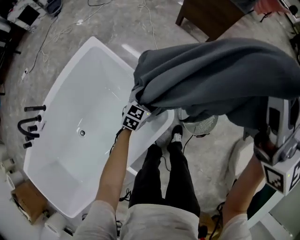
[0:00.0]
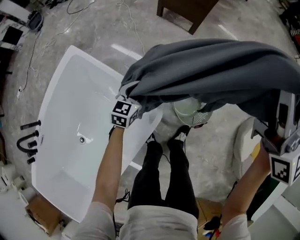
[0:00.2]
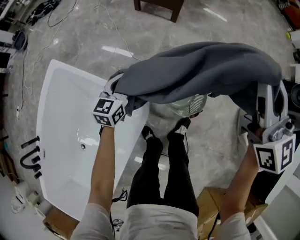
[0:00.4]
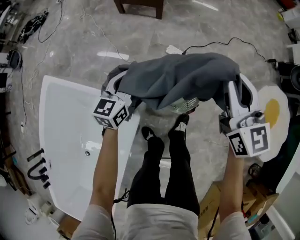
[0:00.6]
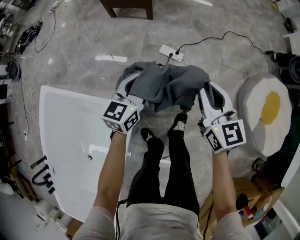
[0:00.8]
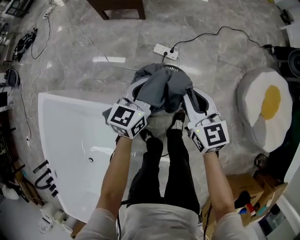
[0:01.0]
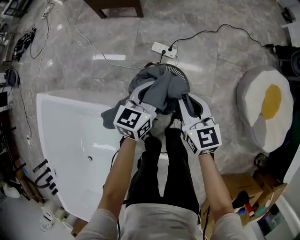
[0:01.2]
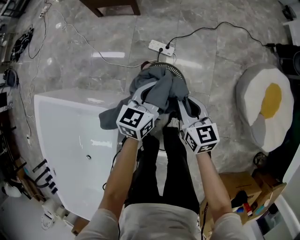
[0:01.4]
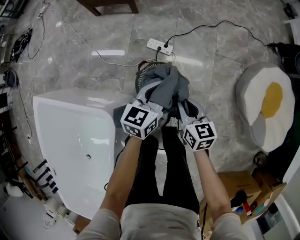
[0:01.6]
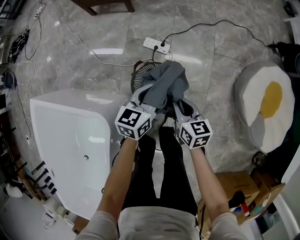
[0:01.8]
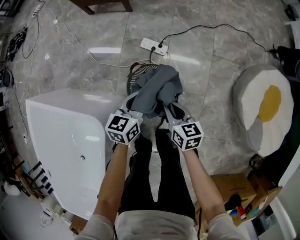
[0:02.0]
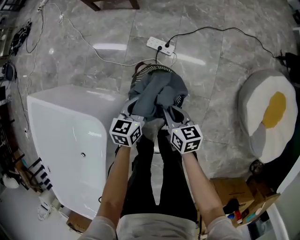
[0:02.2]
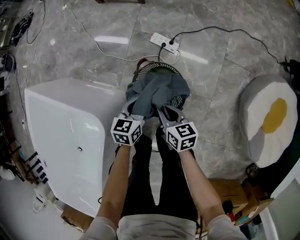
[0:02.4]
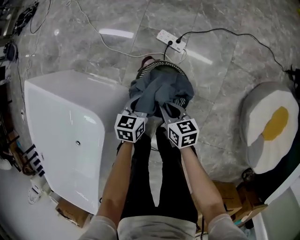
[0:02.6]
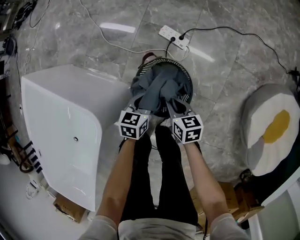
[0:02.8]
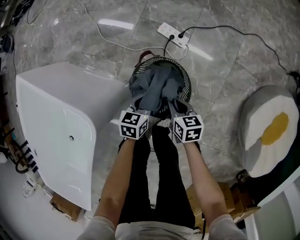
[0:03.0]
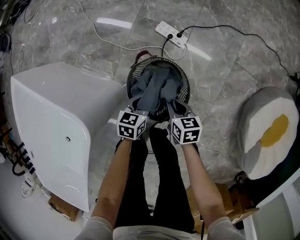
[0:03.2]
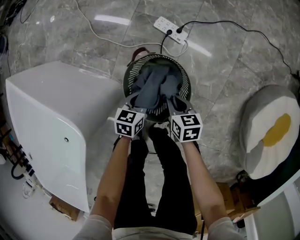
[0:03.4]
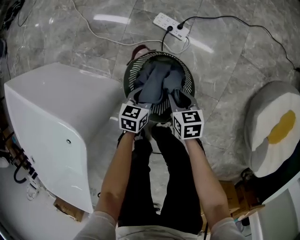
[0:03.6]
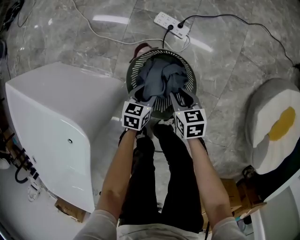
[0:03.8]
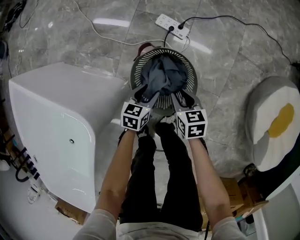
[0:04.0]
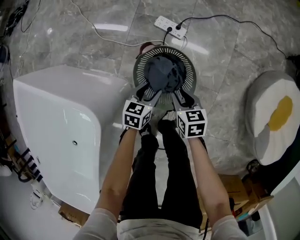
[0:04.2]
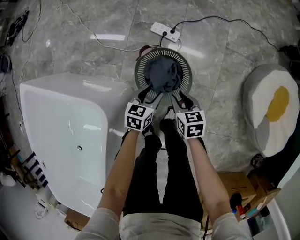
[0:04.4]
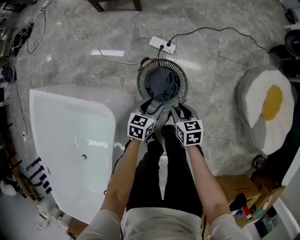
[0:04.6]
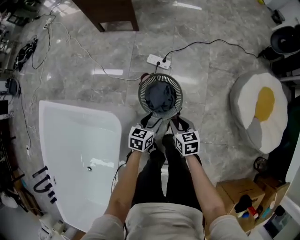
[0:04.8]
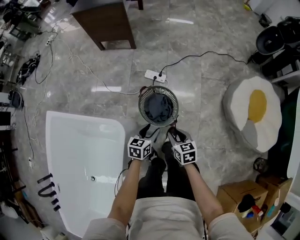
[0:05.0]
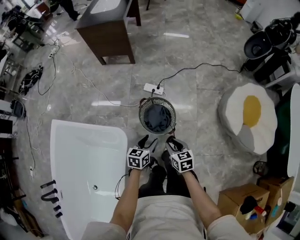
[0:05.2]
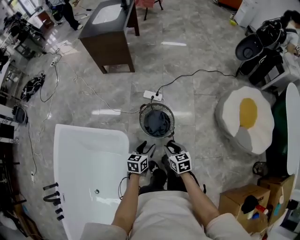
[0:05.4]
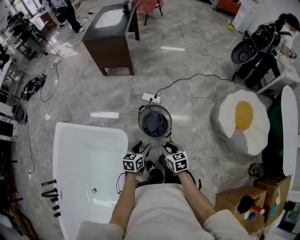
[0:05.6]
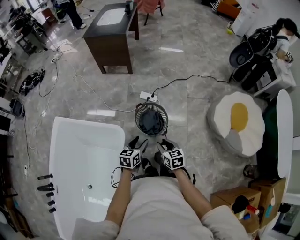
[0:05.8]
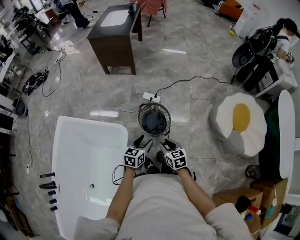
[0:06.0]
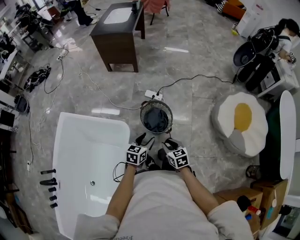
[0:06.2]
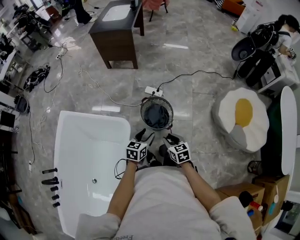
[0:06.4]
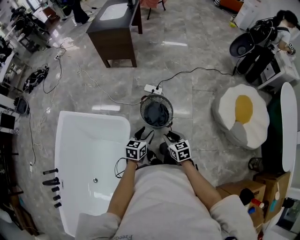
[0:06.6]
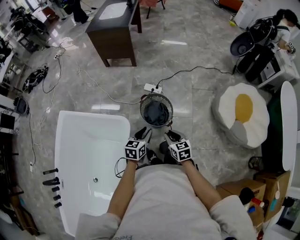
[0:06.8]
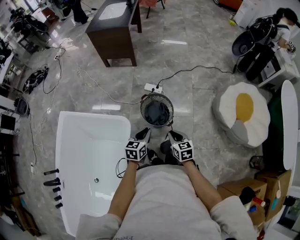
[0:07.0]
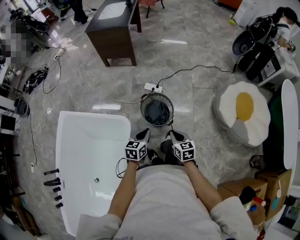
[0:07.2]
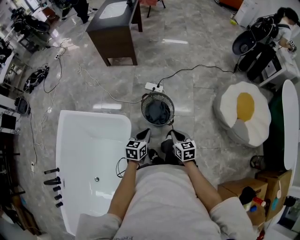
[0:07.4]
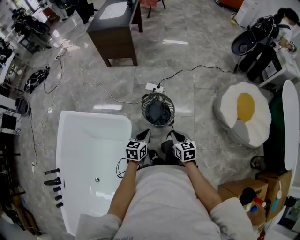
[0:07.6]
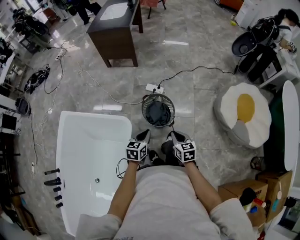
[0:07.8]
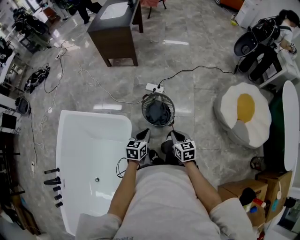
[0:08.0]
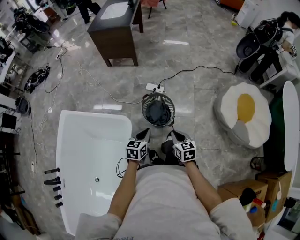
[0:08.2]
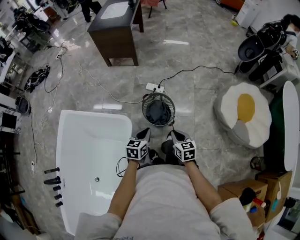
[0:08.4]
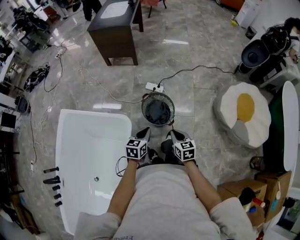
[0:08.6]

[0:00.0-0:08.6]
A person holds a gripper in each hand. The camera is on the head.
0:00.0 to 0:01.4: The right gripper heads downward, covering approximately 40 cm, and points its fingers about 40 degrees further downward; the left gripper changes place by approximately 40 cm, changes its angle by about 20 degrees, and closes.
0:01.4 to 0:02.8: Both grippers move downward, roughly 25 cm. The left gripper turns by about 30 degrees. The right gripper swivels some 30 degrees.
0:02.8 to 0:04.4: The two grippers go about 5 cm backward. The left gripper travels downward and back again, approximately 15 cm each way, while the right gripper moves some 10 cm downward and comes back.
0:04.4 to 0:05.8: Both grippers travel together upward and backward, approximately 40 cm.
0:05.8 to 0:07.2: The grippers make only small movements.
0:07.2 to 0:08.6: The two grippers keep their place.

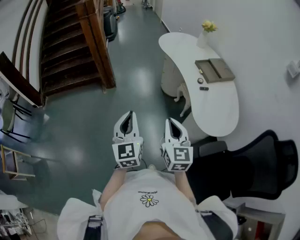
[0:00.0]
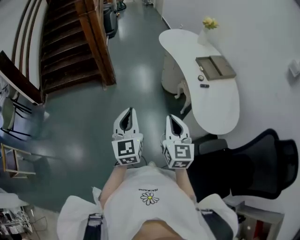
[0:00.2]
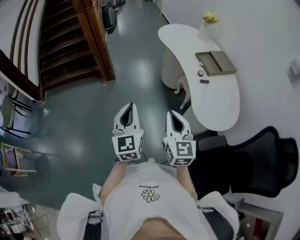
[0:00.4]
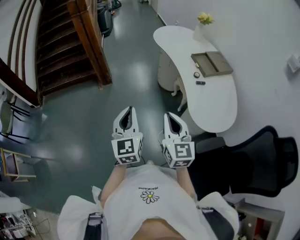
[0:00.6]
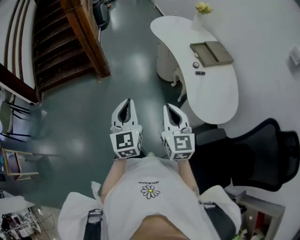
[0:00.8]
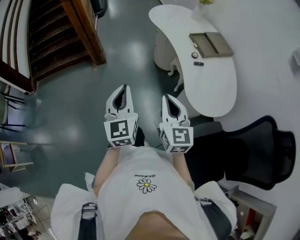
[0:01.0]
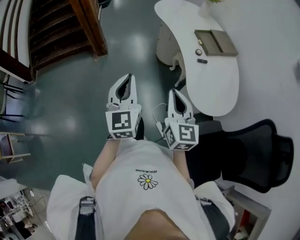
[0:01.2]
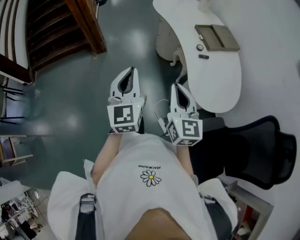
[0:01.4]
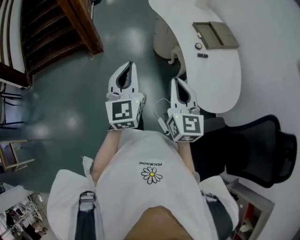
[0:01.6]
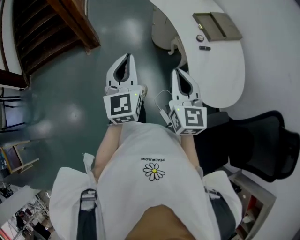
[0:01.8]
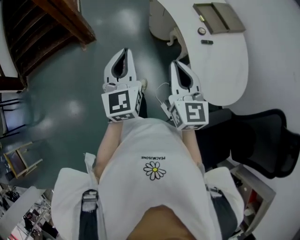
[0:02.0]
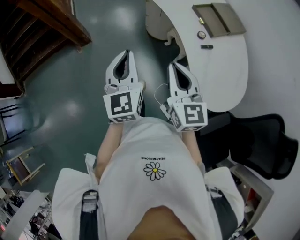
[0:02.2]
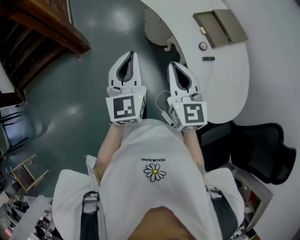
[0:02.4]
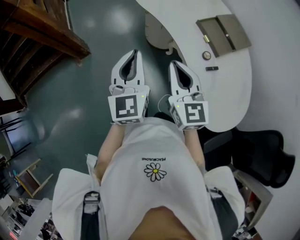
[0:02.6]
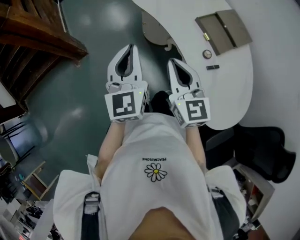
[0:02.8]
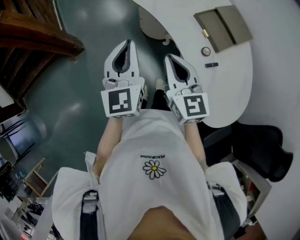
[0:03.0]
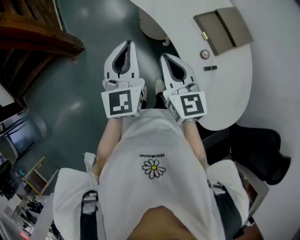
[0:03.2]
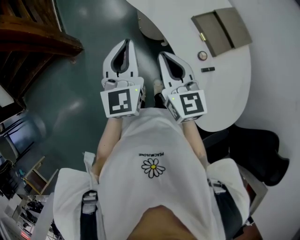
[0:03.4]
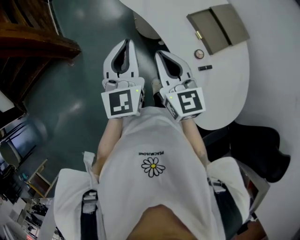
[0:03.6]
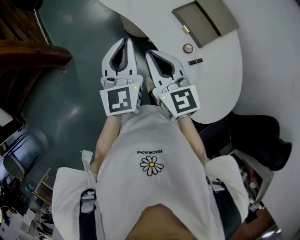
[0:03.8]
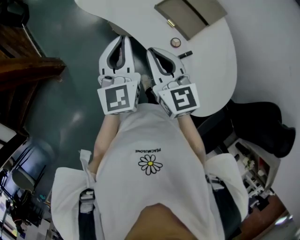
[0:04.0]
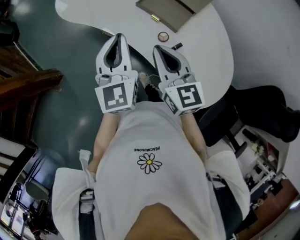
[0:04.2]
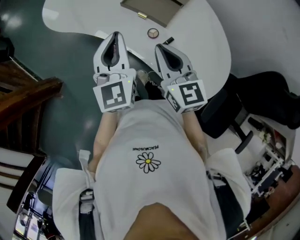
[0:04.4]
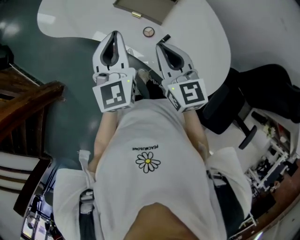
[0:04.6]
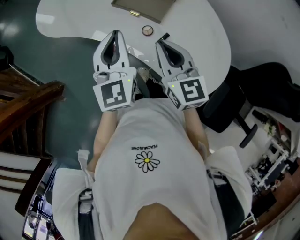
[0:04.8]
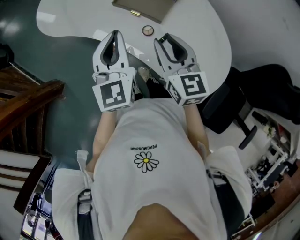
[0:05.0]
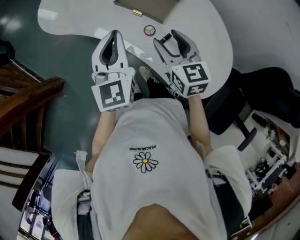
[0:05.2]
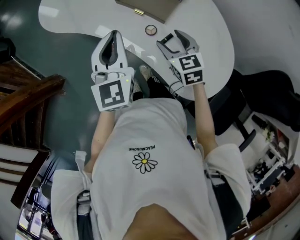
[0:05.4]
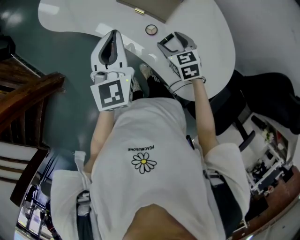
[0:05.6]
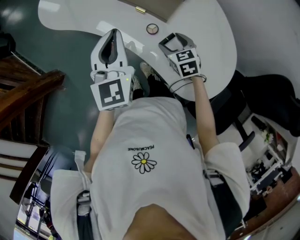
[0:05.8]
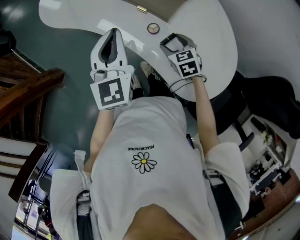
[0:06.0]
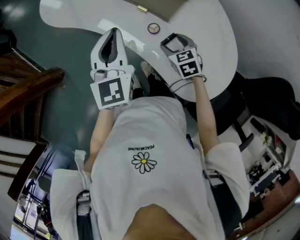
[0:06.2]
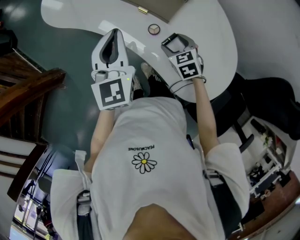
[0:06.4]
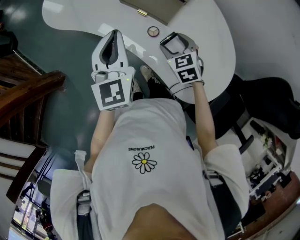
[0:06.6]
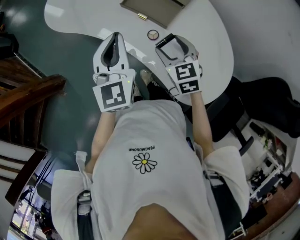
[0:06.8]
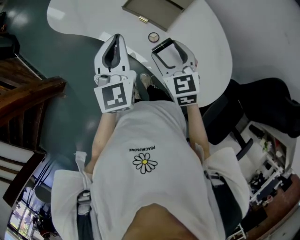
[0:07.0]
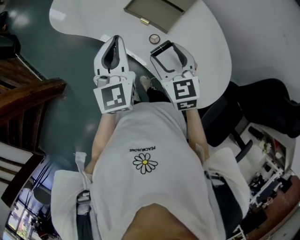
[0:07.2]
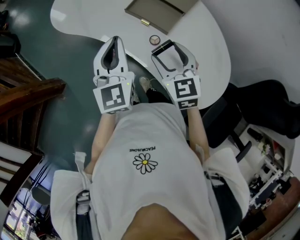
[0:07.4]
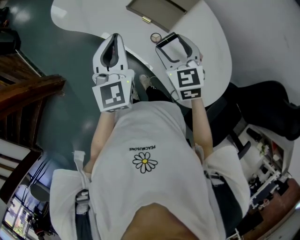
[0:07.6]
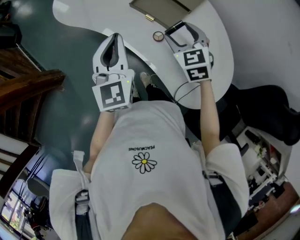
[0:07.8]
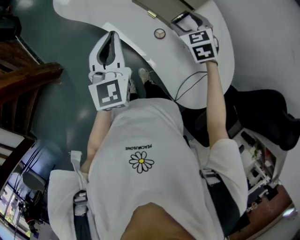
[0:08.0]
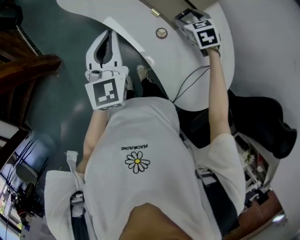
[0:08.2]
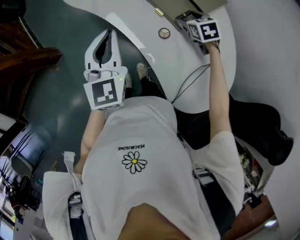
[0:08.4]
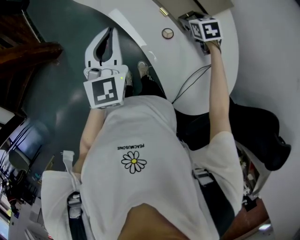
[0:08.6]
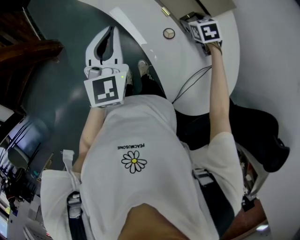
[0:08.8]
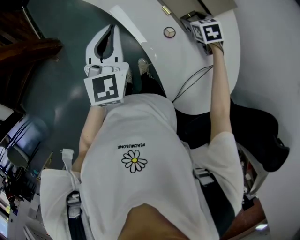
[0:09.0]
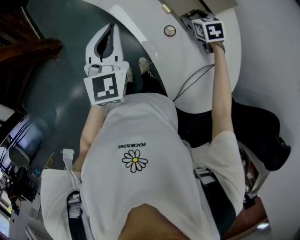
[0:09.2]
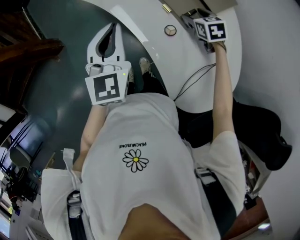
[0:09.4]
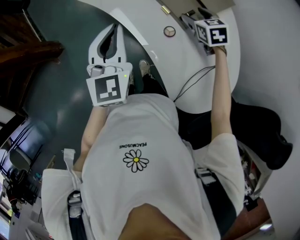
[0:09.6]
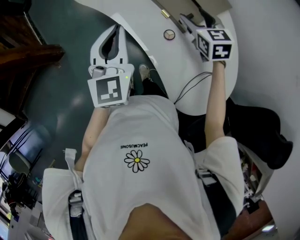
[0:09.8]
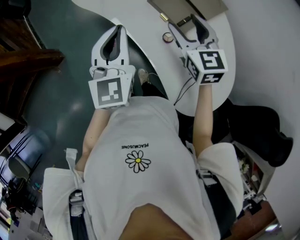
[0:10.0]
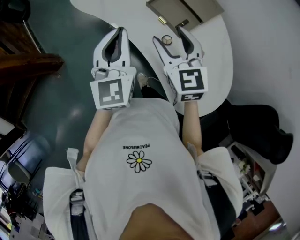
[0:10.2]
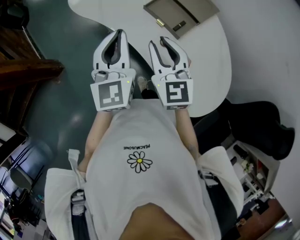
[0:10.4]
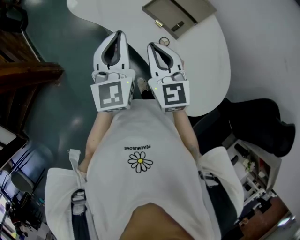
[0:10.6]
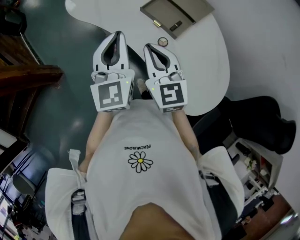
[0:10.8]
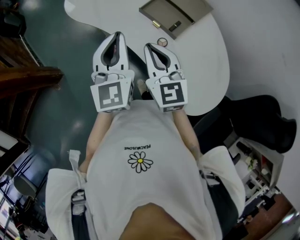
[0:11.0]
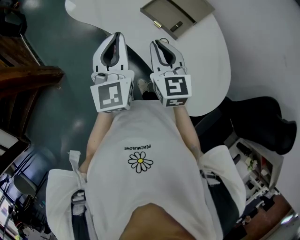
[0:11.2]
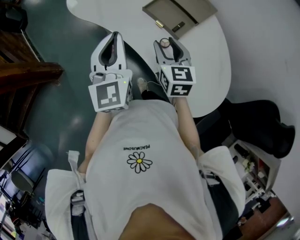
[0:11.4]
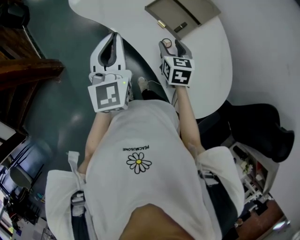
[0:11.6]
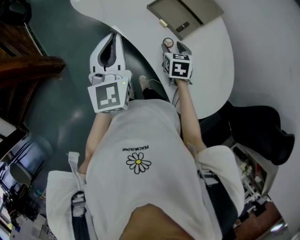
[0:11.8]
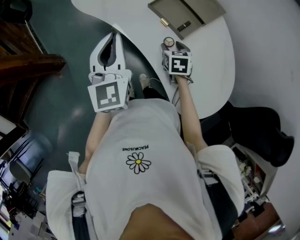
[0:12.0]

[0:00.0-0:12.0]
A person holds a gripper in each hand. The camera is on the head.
0:00.0 to 0:01.6: Both grippers travel together forward and to the right, about 10 cm.
0:01.6 to 0:03.0: The grippers both shift forward by approximately 35 cm.
0:03.0 to 0:04.4: Both grippers travel together to the right, roughly 20 cm. The right gripper swivels approximately 20 degrees, while the left gripper rotates approximately 20 degrees.
0:04.4 to 0:06.0: The right gripper goes about 20 cm downward, angles its fingers downward, by approximately 30 degrees, and opens its fingers.
0:06.0 to 0:07.6: The right gripper shifts roughly 20 cm upward, and turns by about 20 degrees.
0:07.6 to 0:09.0: The left gripper ends up roughly 5 cm from where it was. Meanwhile the right gripper heads downward, forward and to the right, covering about 25 cm, and swivels approximately 30 degrees.
0:09.0 to 0:10.4: The left gripper heads upward, covering about 5 cm, while the right gripper is displaced upward, to the left and backward by approximately 30 cm, points its fingers roughly 50 degrees further upward, and closes.
0:10.4 to 0:12.0: The right gripper heads downward, covering roughly 25 cm, points its fingers about 40 degrees further downward, and opens up.

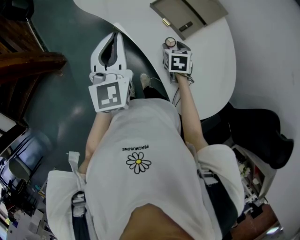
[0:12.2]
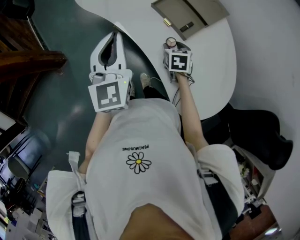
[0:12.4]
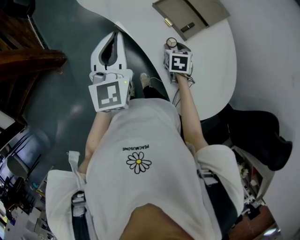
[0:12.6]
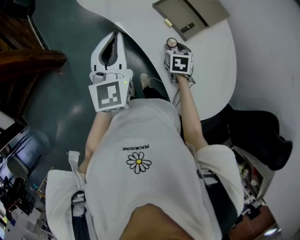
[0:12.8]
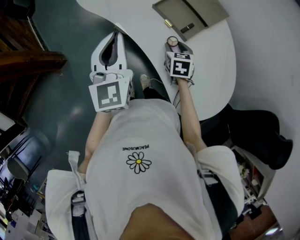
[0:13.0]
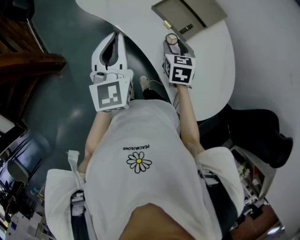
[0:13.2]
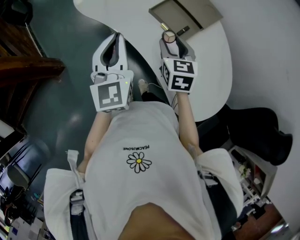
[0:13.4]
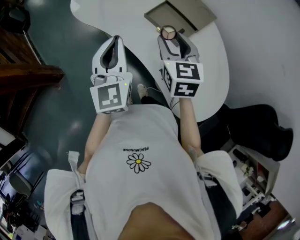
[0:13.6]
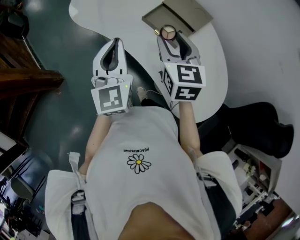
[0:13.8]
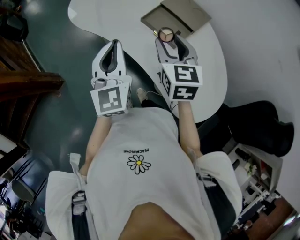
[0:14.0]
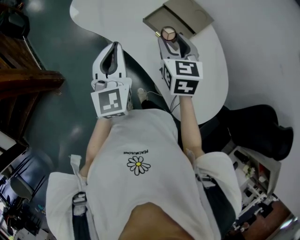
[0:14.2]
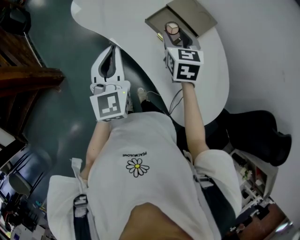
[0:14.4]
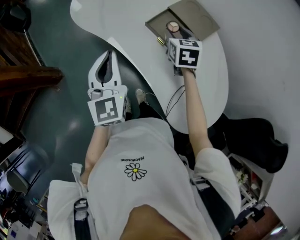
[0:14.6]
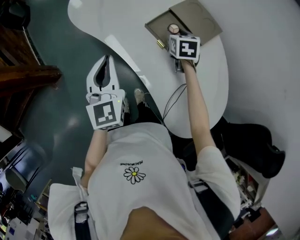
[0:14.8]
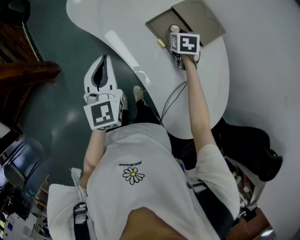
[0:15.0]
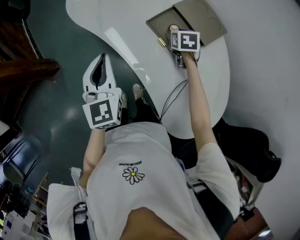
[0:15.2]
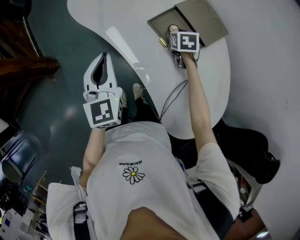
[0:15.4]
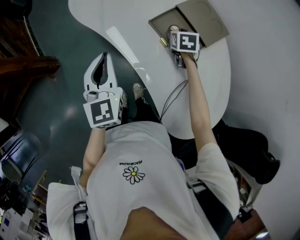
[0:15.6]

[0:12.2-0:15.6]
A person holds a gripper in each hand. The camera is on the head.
0:12.2 to 0:13.8: The right gripper moves upward, roughly 25 cm, and points its fingers about 30 degrees further upward.
0:13.8 to 0:15.6: The right gripper is displaced downward and forward by approximately 30 cm, and tilts its fingers some 30 degrees downward. Meanwhile the left gripper heads downward, covering some 10 cm.
